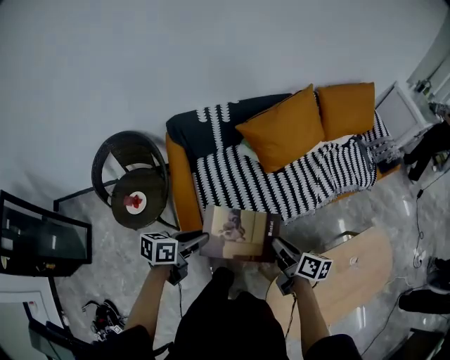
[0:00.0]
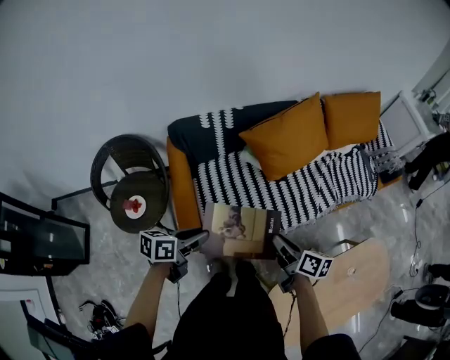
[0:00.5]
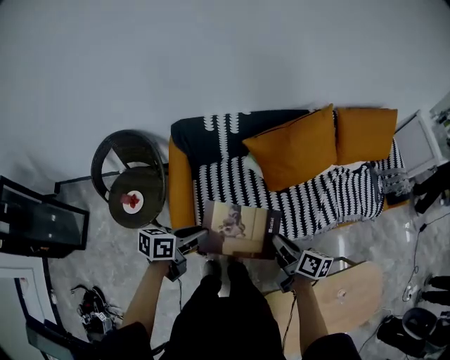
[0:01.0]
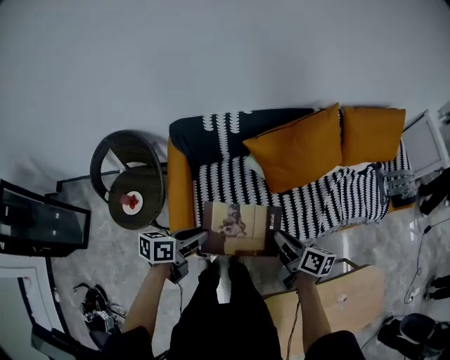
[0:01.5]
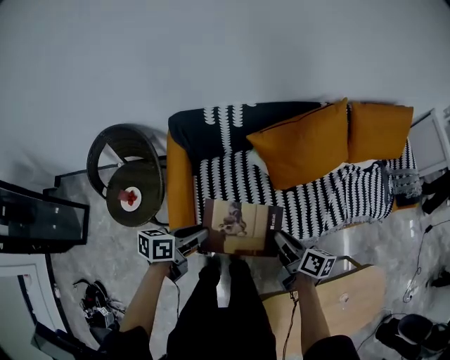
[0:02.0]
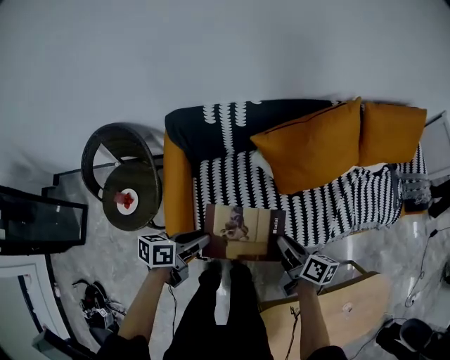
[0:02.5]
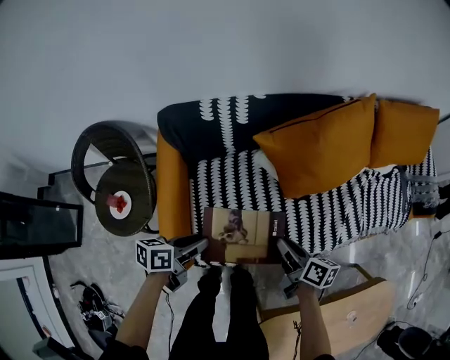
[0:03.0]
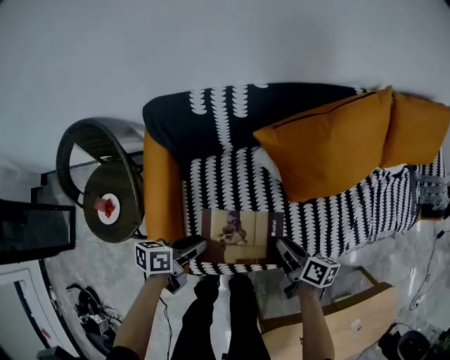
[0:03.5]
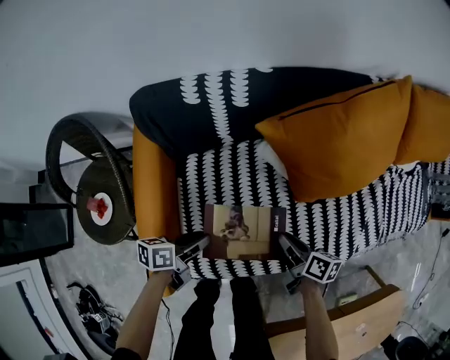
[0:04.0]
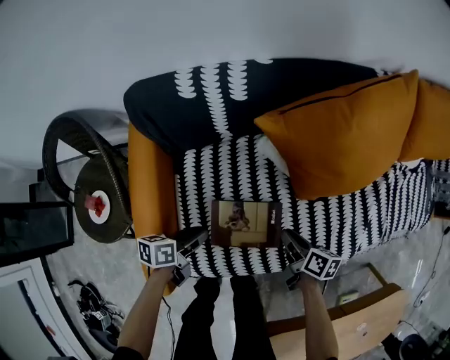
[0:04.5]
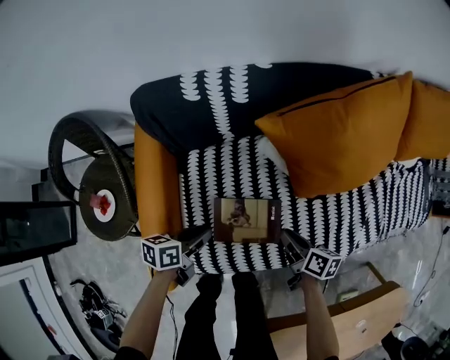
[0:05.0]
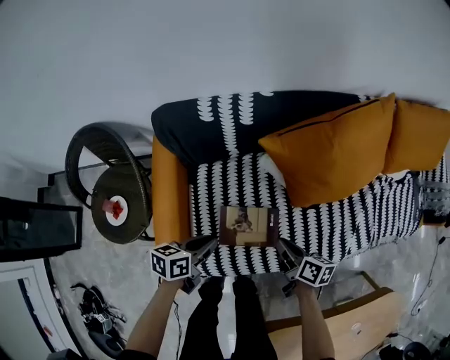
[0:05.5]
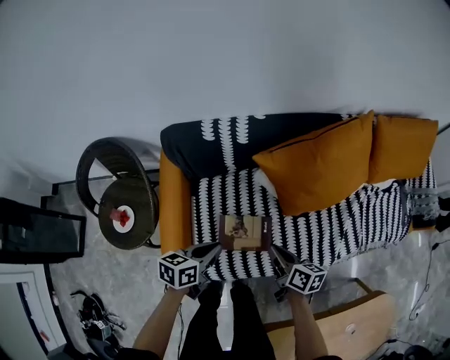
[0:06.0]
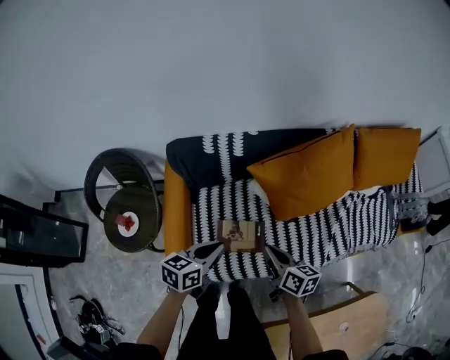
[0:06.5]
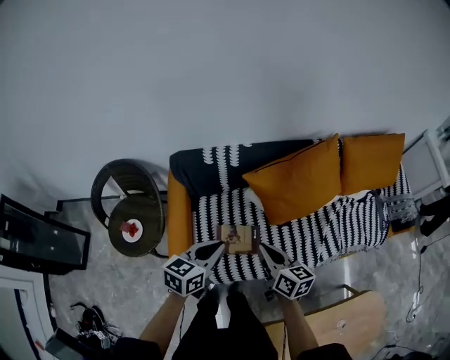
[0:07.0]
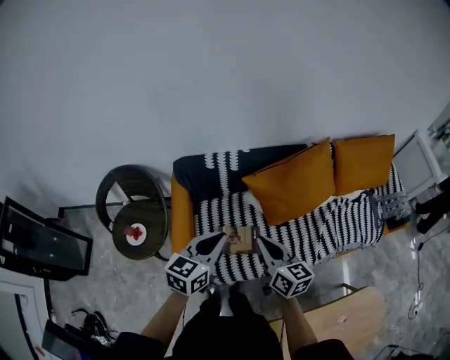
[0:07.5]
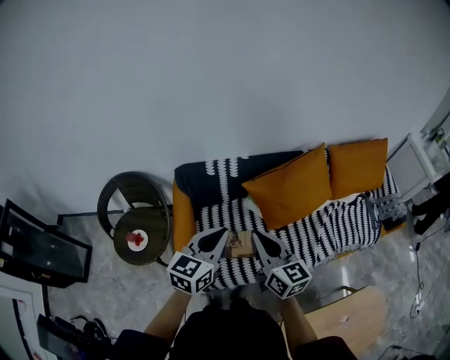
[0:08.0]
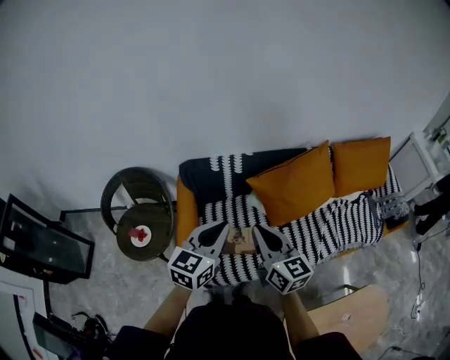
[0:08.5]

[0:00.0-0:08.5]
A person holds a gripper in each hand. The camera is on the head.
0:00.0 to 0:02.0: Both grippers move forward, some 20 cm.
0:02.0 to 0:04.0: The right gripper shifts roughly 35 cm downward and forward. The left gripper heads downward, covering some 30 cm.
0:04.0 to 0:06.5: Both grippers travel together upward, about 30 cm. The left gripper swivels some 30 degrees, and closes up.
0:06.5 to 0:08.5: The two grippers go approximately 25 cm upward. The left gripper swivels approximately 30 degrees. Meanwhile the right gripper turns by roughly 40 degrees.

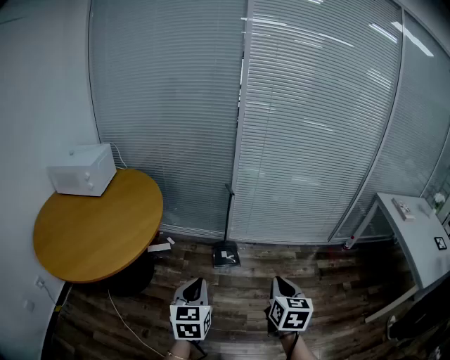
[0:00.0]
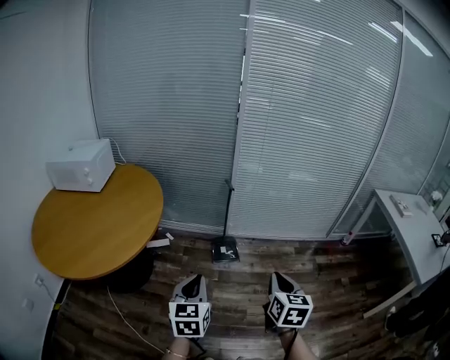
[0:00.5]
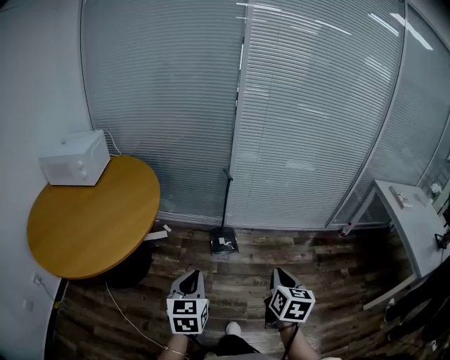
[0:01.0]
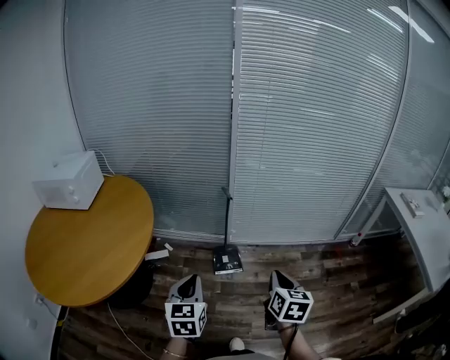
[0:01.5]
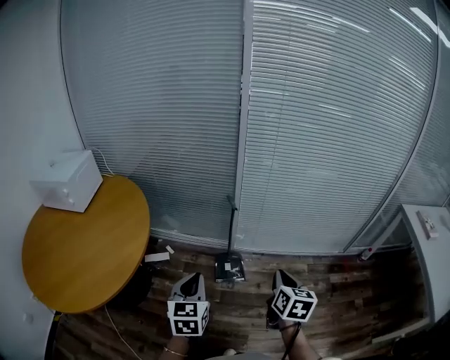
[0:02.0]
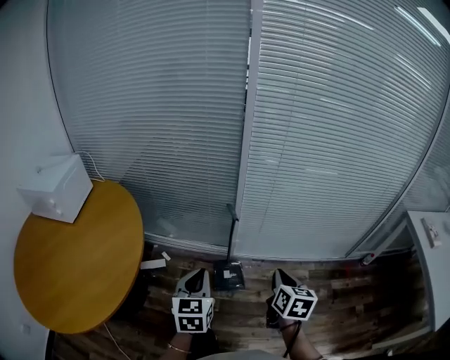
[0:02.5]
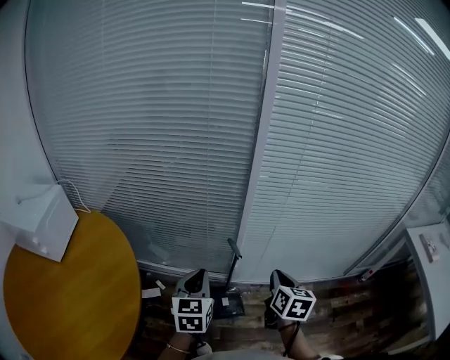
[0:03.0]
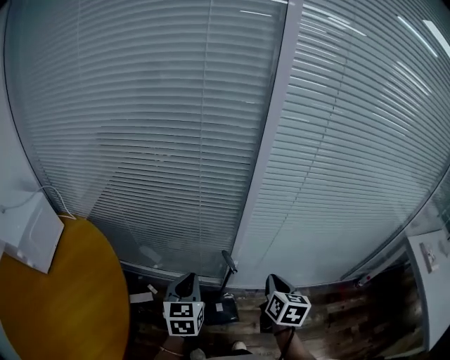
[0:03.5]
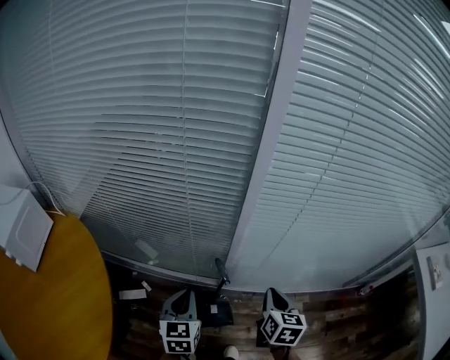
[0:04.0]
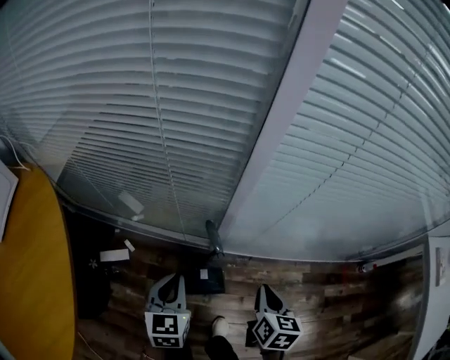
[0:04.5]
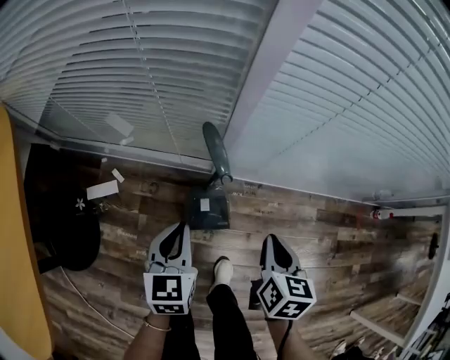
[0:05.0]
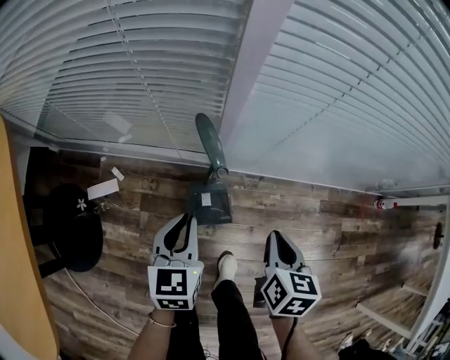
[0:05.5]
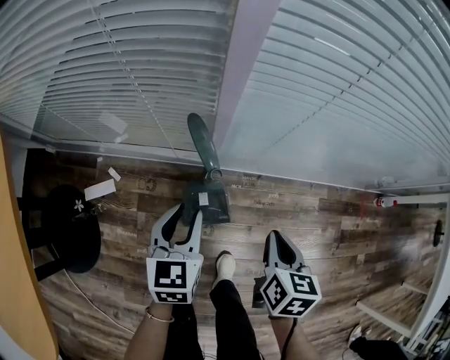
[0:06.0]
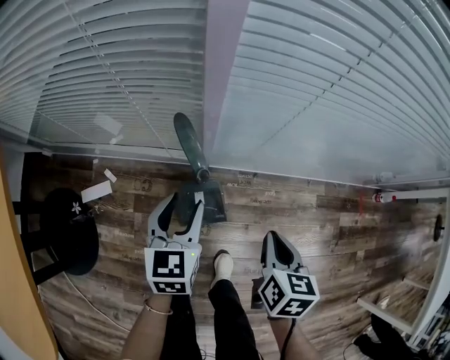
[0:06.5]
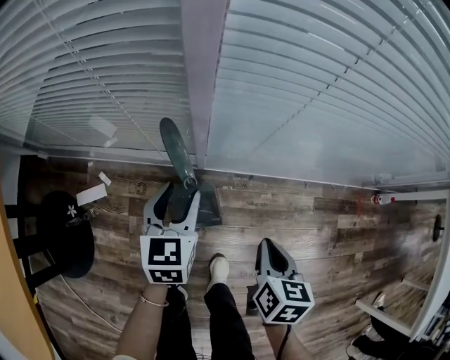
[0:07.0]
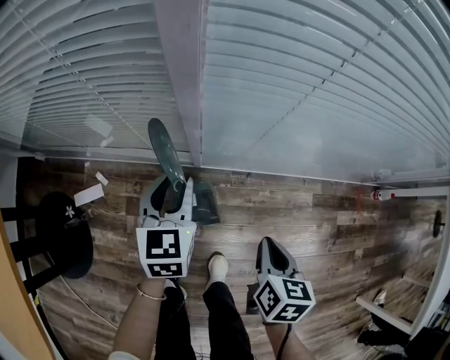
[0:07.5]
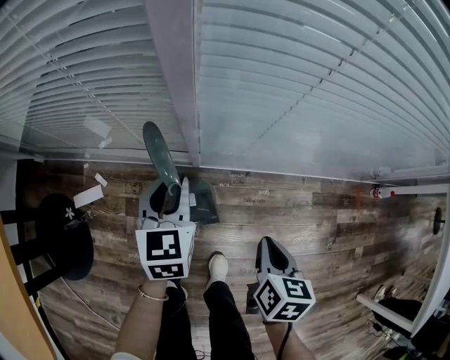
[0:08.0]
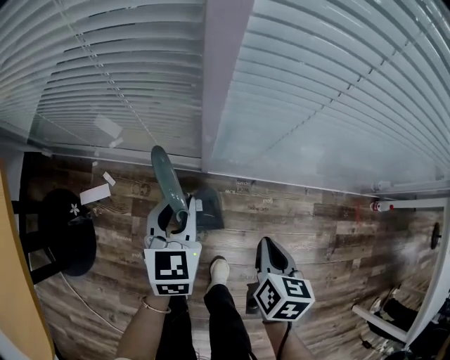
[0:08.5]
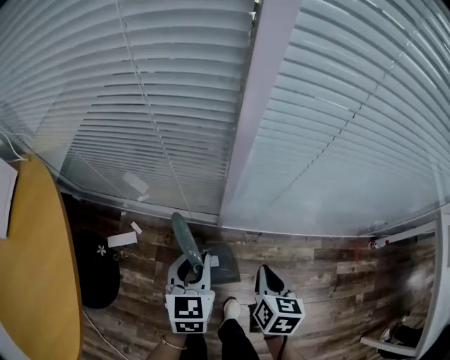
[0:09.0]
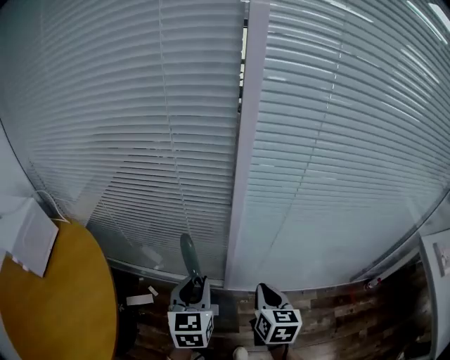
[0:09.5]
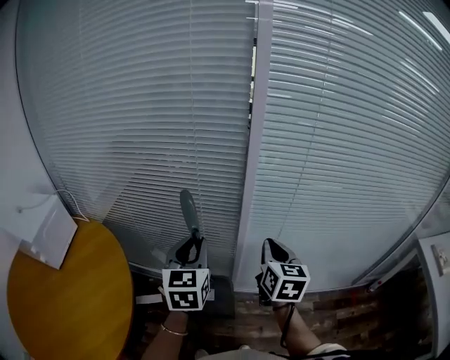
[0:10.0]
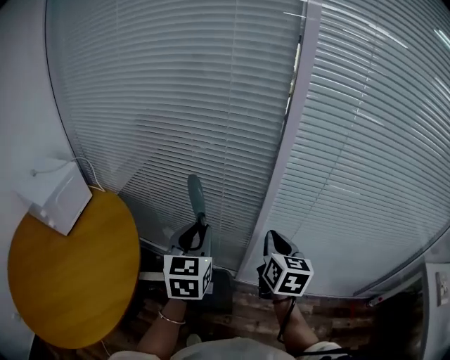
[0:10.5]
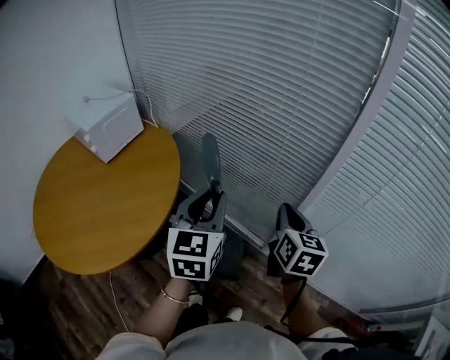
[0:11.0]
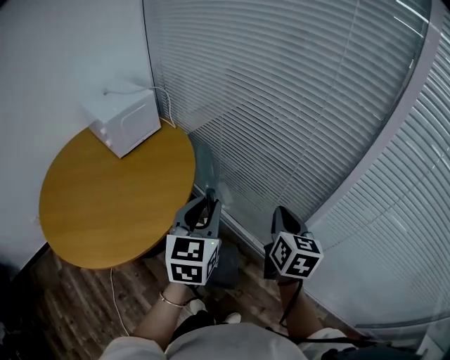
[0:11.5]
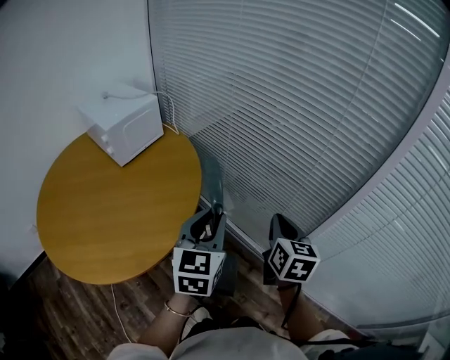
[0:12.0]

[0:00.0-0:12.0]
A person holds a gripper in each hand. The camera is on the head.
0:00.0 to 0:02.0: Both grippers travel together forward, about 20 cm.
0:02.0 to 0:04.0: Both grippers move forward, approximately 30 cm.
0:04.0 to 0:06.0: The two grippers go about 25 cm downward. The left gripper opens its fingers.
0:06.0 to 0:08.0: The left gripper heads forward, covering about 10 cm, and opens, then closes once more.
0:08.0 to 0:10.0: The two grippers go some 40 cm upward. The right gripper tips its fingers upward by approximately 40 degrees. Meanwhile the left gripper turns by approximately 20 degrees.
0:10.0 to 0:12.0: The right gripper shifts by approximately 25 cm, and rotates about 30 degrees. Meanwhile the left gripper ends up about 20 cm from where it was, and turns by about 30 degrees.

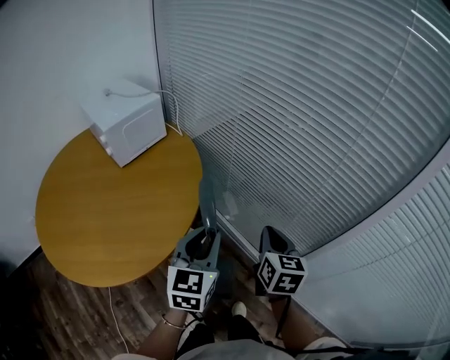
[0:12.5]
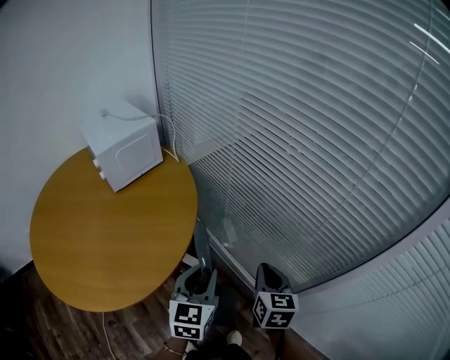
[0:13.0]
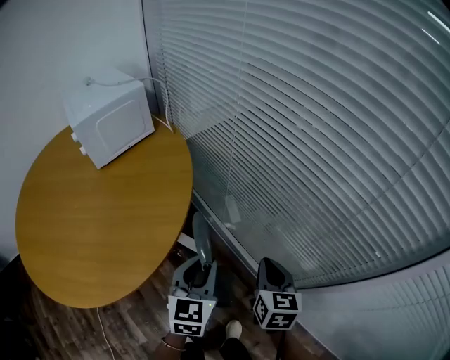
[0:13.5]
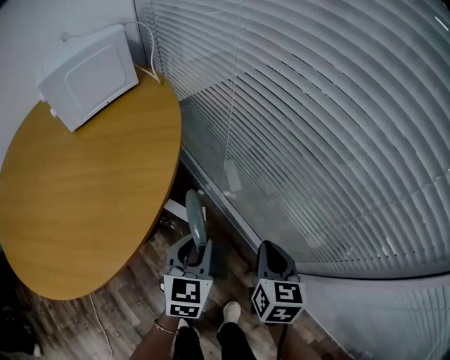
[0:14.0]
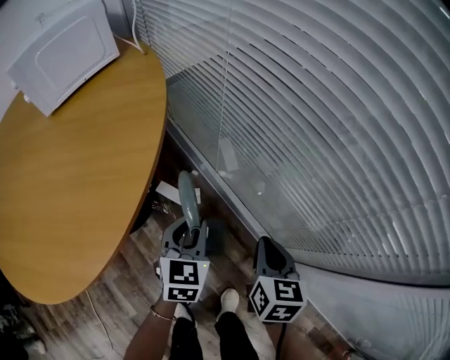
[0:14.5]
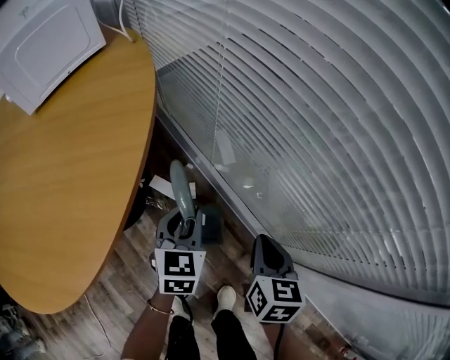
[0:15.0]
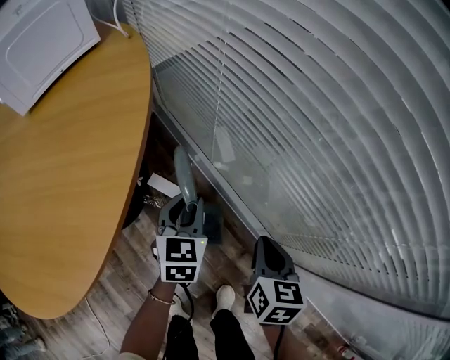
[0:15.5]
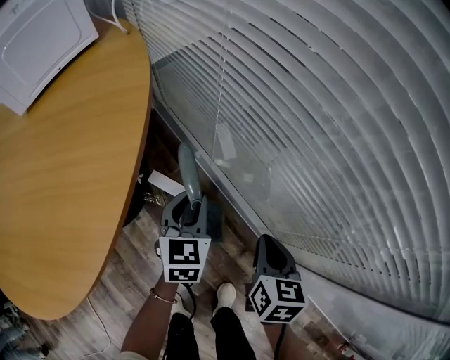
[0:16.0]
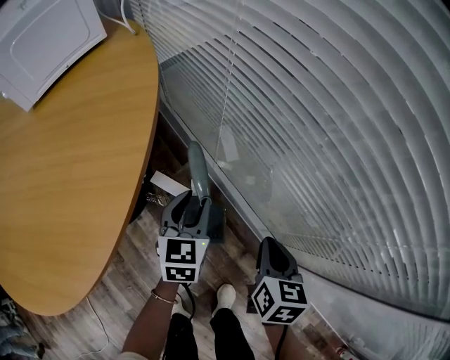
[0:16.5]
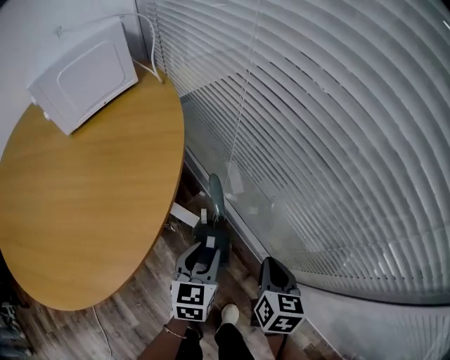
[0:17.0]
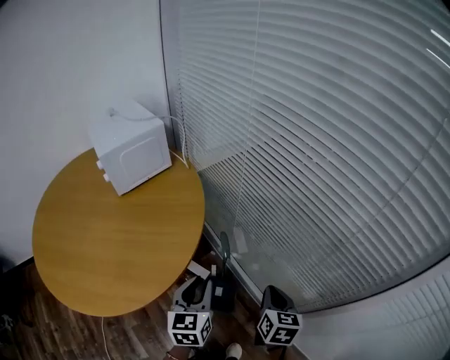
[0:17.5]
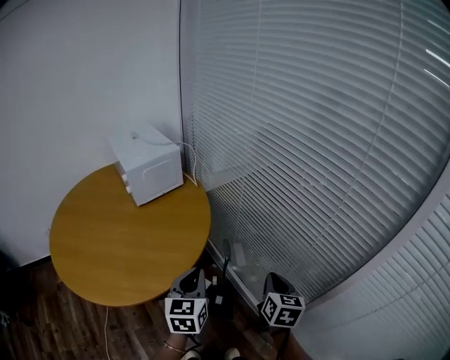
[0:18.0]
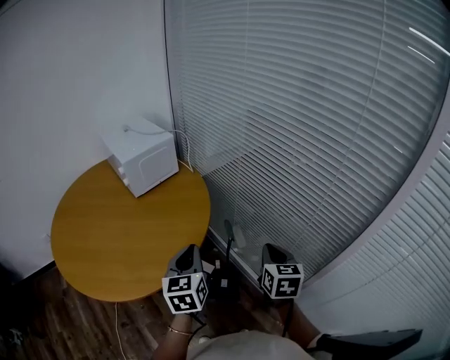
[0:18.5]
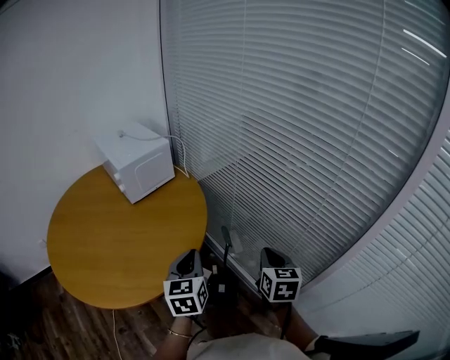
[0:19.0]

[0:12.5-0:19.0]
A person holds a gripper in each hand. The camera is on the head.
0:12.5 to 0:14.5: The grippers both shift downward by approximately 30 cm.
0:14.5 to 0:17.0: The left gripper reaches some 5 cm forward, then returns.
0:17.0 to 0:19.0: The grippers both shift upward by some 30 cm. The left gripper closes.
